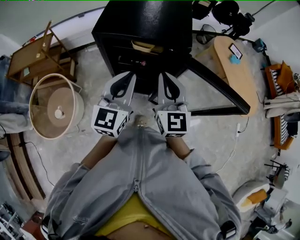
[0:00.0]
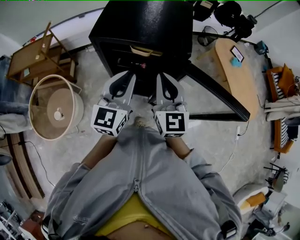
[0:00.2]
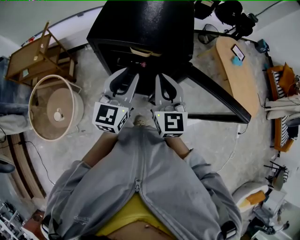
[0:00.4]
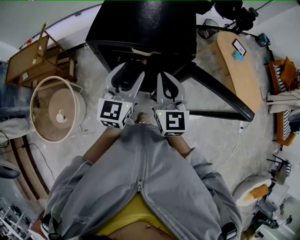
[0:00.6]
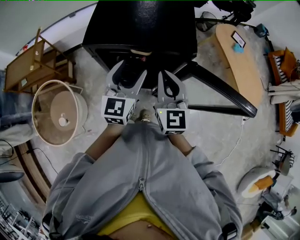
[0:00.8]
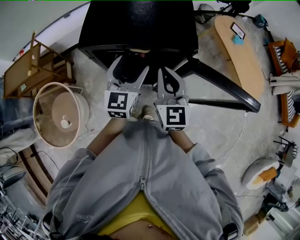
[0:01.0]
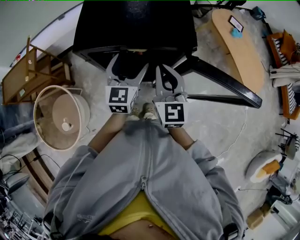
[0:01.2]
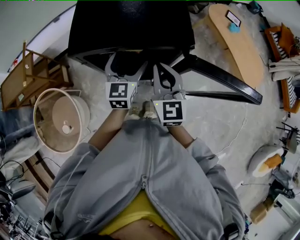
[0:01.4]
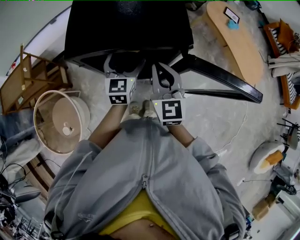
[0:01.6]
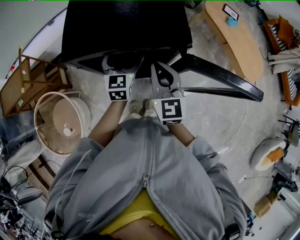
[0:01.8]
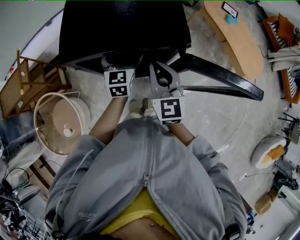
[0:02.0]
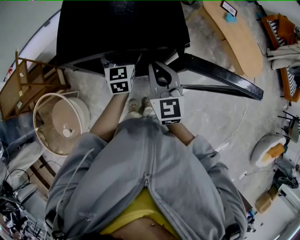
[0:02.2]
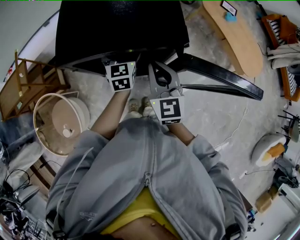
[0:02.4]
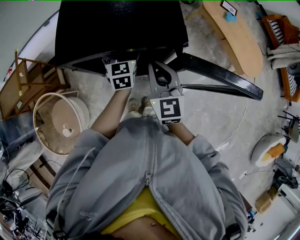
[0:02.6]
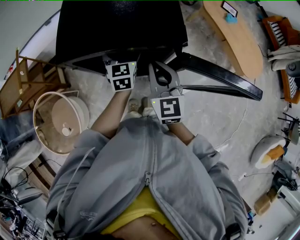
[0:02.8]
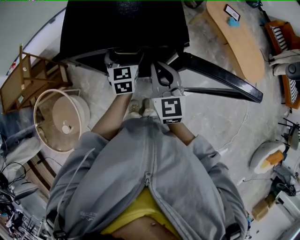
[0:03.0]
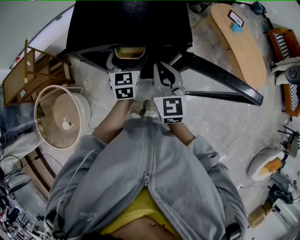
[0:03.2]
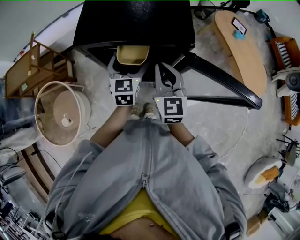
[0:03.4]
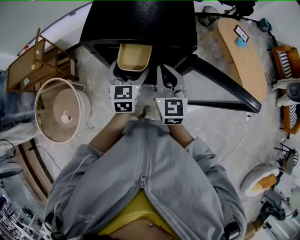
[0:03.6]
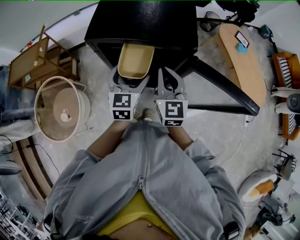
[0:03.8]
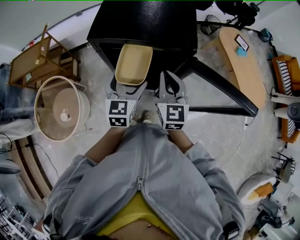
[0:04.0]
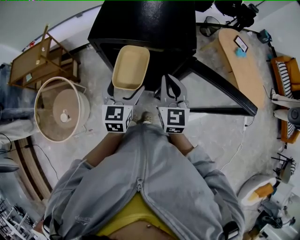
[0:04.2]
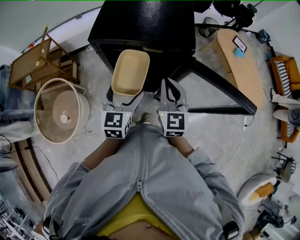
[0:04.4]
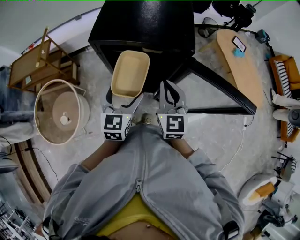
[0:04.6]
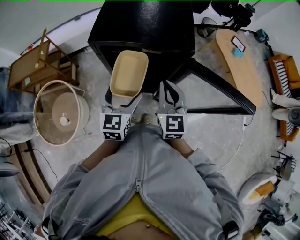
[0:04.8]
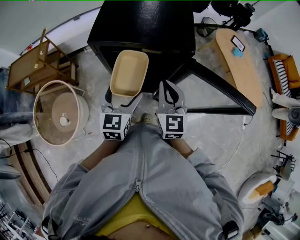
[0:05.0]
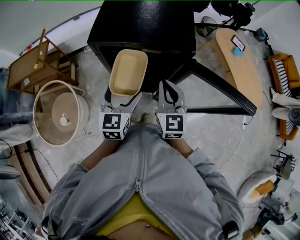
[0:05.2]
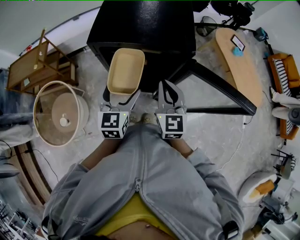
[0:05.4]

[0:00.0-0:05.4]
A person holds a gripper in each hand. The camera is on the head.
0.0 to 1.4 s: The right gripper shifts some 10 cm forward and downward, while the left gripper moves forward and downward, roughly 20 cm, and opens its fingers.
1.4 to 2.8 s: The left gripper moves forward, approximately 5 cm.
2.8 to 4.0 s: The right gripper moves about 5 cm, while the left gripper travels backward and upward by approximately 20 cm.
4.0 to 5.4 s: The grippers move only a little.

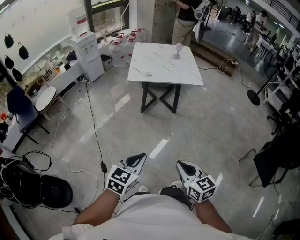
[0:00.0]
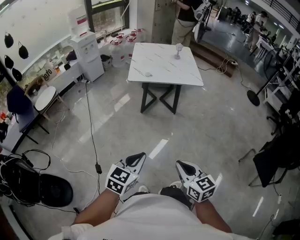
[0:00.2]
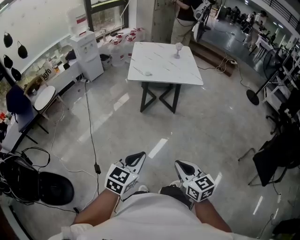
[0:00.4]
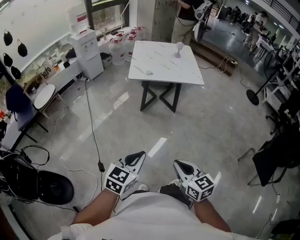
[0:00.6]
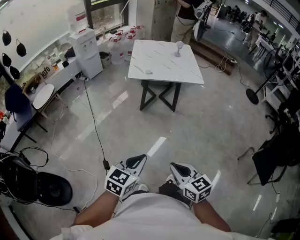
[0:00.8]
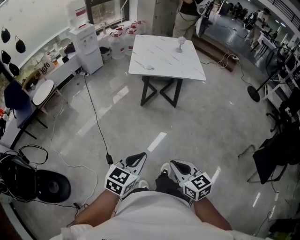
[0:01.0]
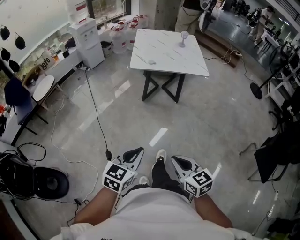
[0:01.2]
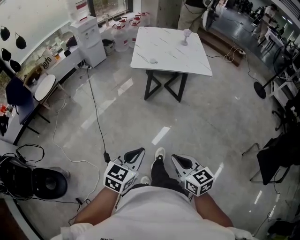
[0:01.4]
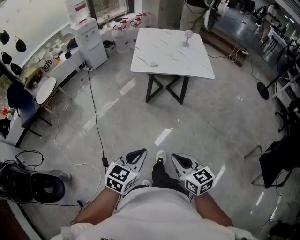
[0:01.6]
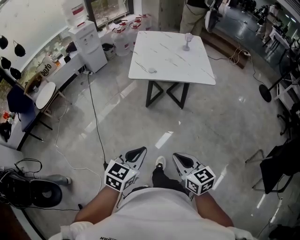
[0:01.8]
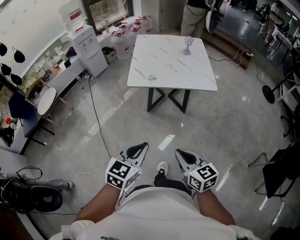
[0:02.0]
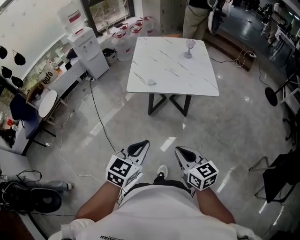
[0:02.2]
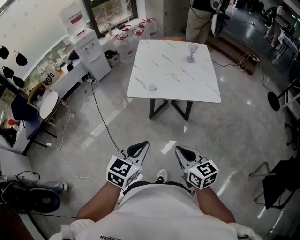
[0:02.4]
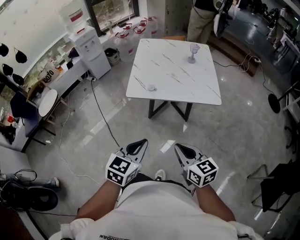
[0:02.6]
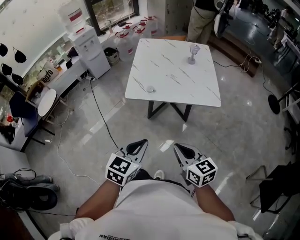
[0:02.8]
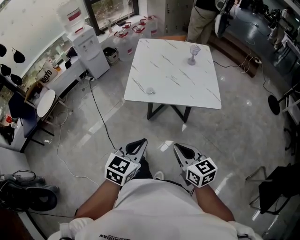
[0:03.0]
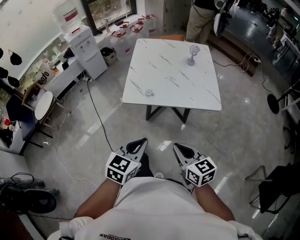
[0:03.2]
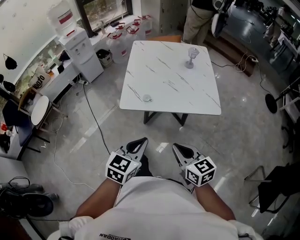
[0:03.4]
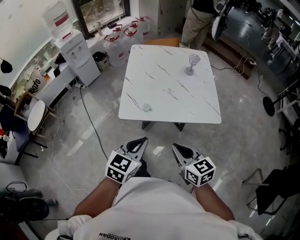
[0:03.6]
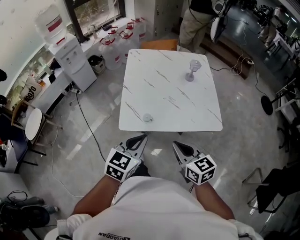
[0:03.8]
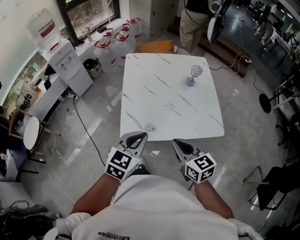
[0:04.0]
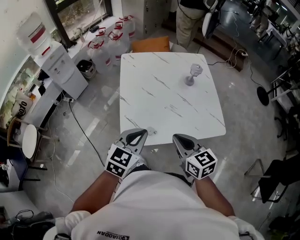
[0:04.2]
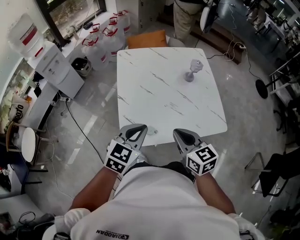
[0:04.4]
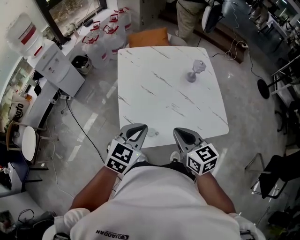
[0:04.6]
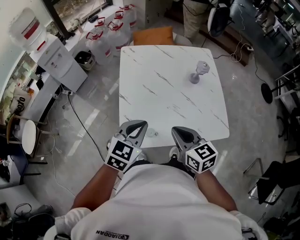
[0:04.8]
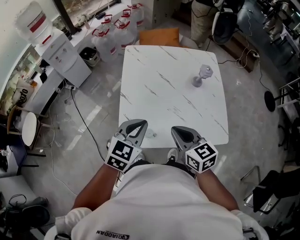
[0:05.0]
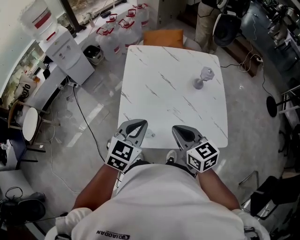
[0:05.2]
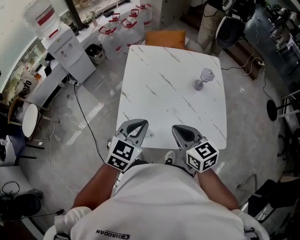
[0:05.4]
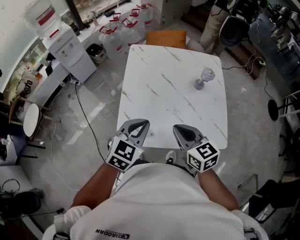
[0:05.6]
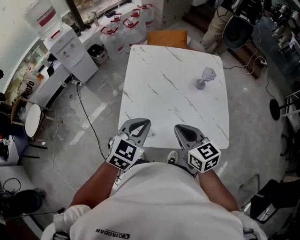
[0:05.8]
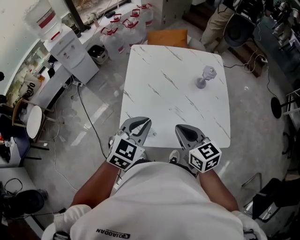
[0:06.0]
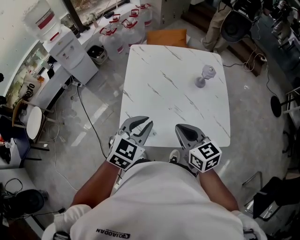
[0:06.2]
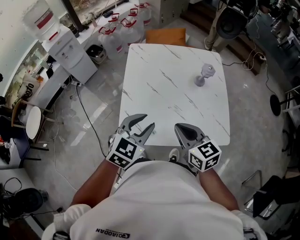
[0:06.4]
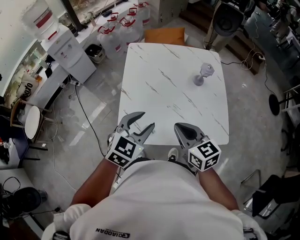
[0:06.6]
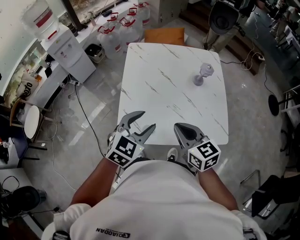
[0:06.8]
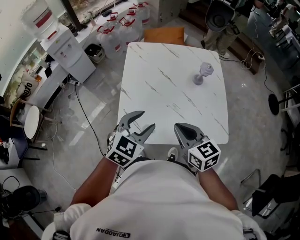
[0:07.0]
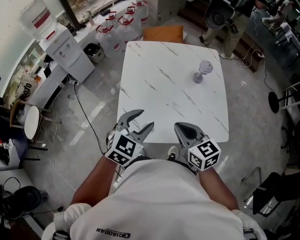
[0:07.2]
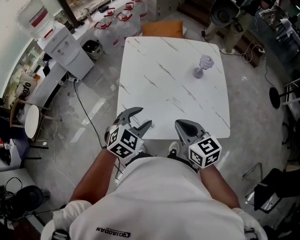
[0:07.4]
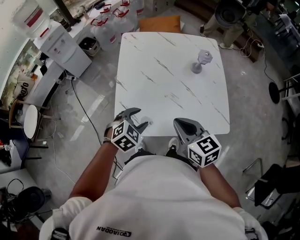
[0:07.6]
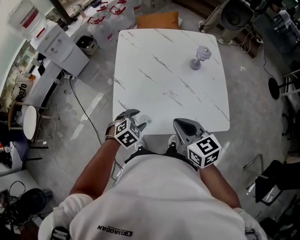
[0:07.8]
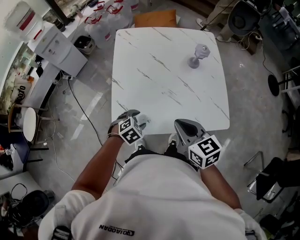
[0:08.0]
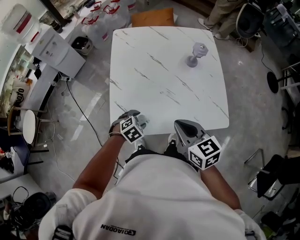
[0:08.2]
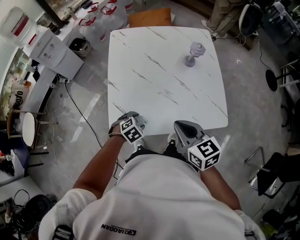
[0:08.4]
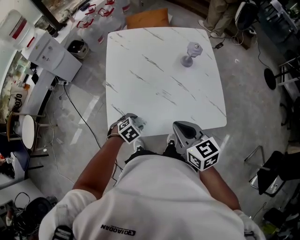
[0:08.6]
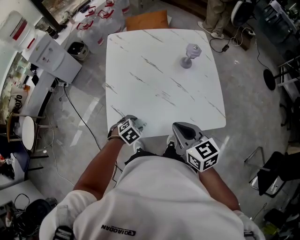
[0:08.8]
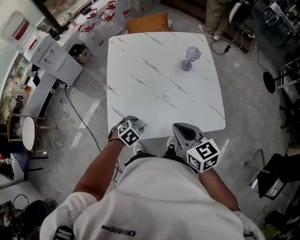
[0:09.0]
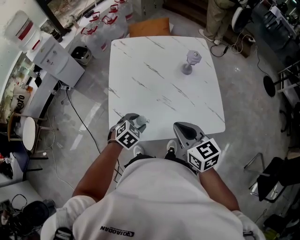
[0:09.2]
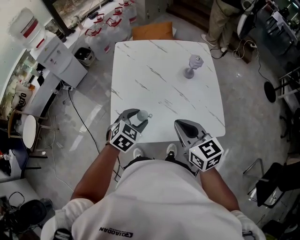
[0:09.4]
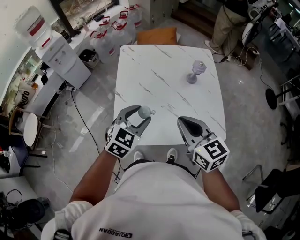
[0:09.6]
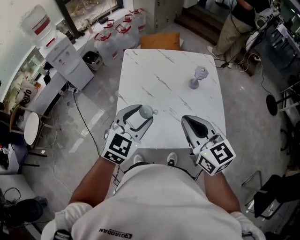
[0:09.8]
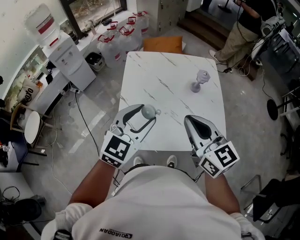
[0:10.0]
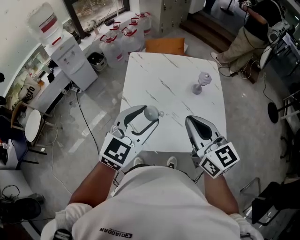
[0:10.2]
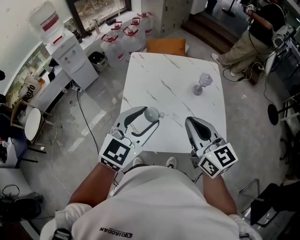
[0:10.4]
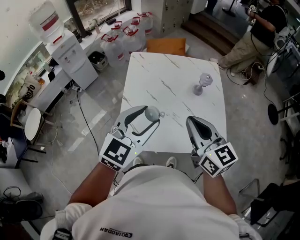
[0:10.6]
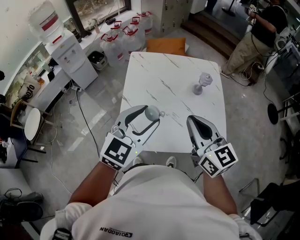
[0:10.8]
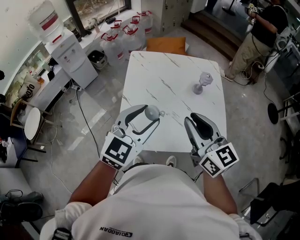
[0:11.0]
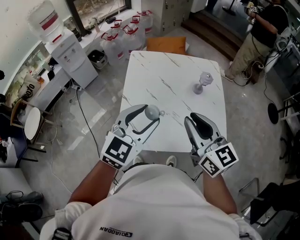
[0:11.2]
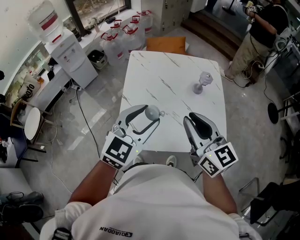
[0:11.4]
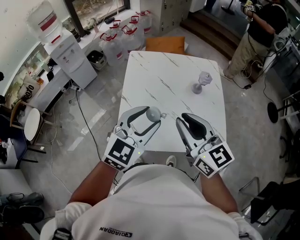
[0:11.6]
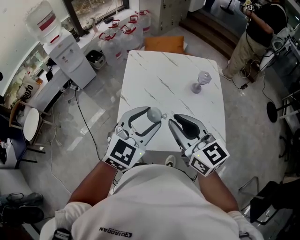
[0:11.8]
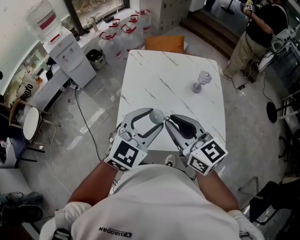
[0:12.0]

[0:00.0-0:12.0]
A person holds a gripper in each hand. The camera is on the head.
0.0 to 1.6 s: Both grippers move forward, approximately 5 cm.
1.6 to 3.0 s: Both grippers travel together forward, roughly 30 cm.
3.0 to 4.4 s: Both grippers move forward, approximately 35 cm.
4.4 to 6.0 s: The right gripper is displaced forward by approximately 5 cm.
6.0 to 7.6 s: The left gripper moves downward, approximately 15 cm, changes its angle by some 30 degrees, and opens its fingers.
7.6 to 9.0 s: The left gripper travels downward by some 10 cm.
9.0 to 10.4 s: The left gripper is displaced upward by some 35 cm, and points its fingers roughly 50 degrees further upward; the right gripper travels upward by about 15 cm, and turns by roughly 20 degrees.
10.4 to 12.0 s: The right gripper is displaced to the left by approximately 5 cm.

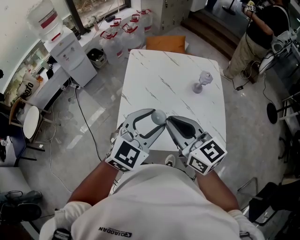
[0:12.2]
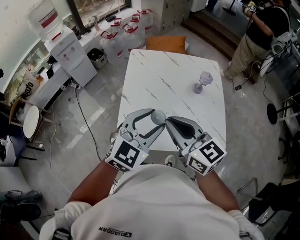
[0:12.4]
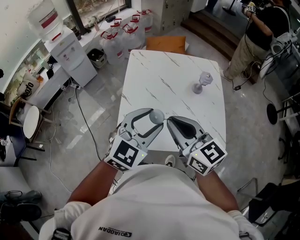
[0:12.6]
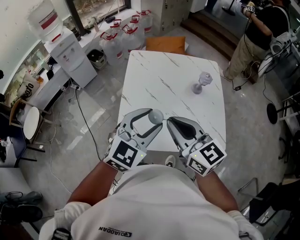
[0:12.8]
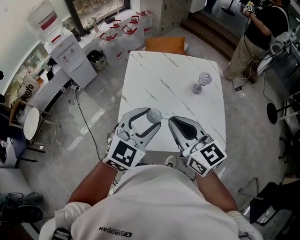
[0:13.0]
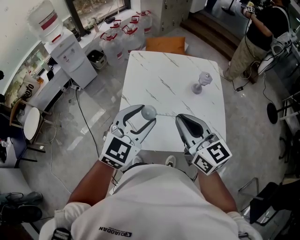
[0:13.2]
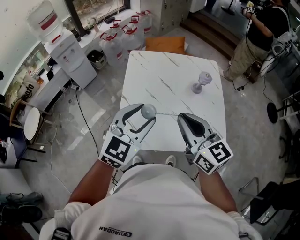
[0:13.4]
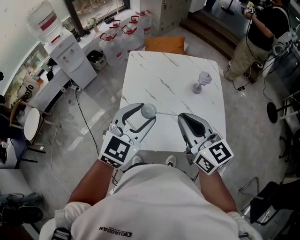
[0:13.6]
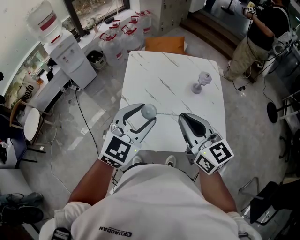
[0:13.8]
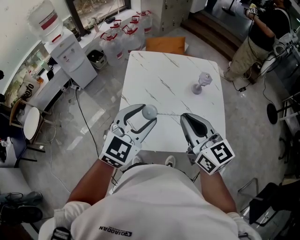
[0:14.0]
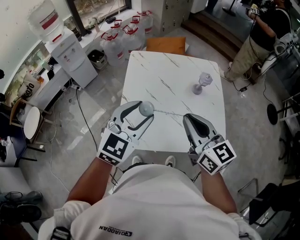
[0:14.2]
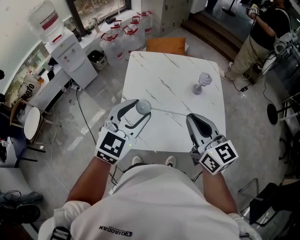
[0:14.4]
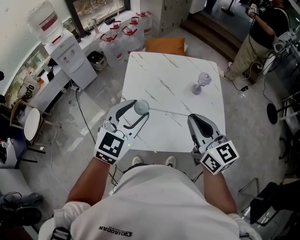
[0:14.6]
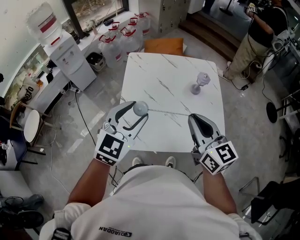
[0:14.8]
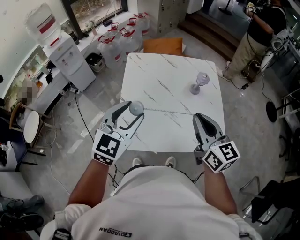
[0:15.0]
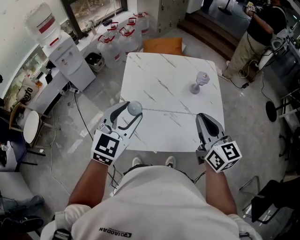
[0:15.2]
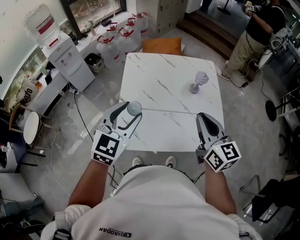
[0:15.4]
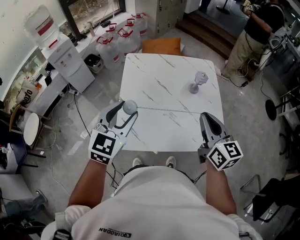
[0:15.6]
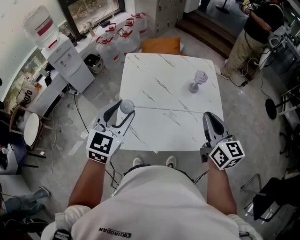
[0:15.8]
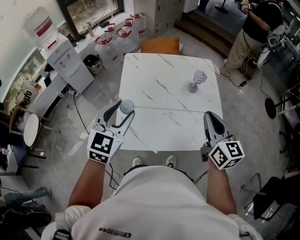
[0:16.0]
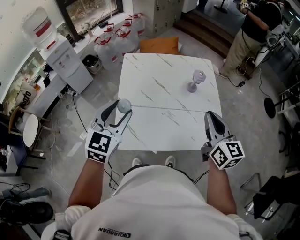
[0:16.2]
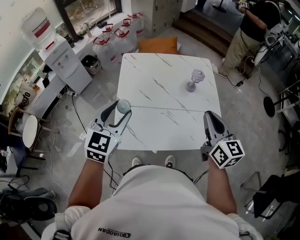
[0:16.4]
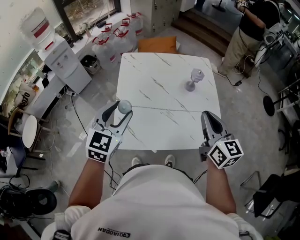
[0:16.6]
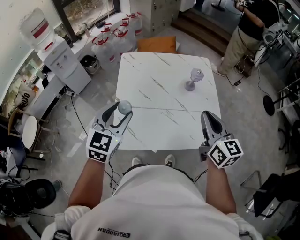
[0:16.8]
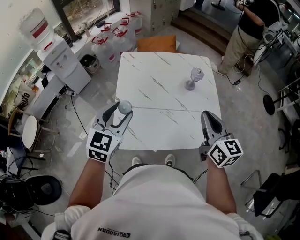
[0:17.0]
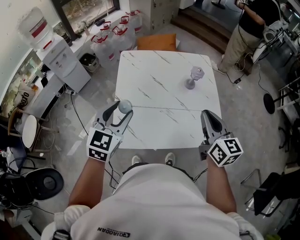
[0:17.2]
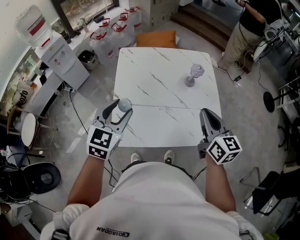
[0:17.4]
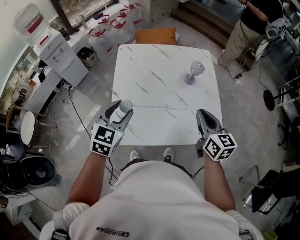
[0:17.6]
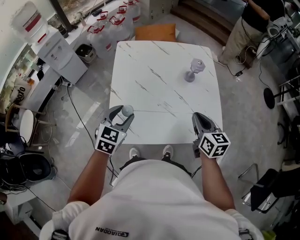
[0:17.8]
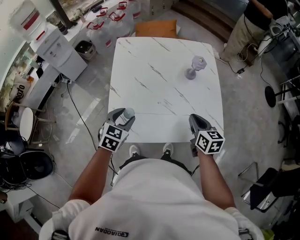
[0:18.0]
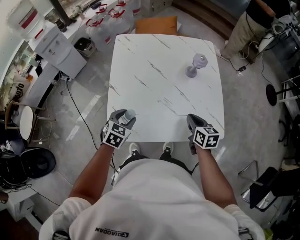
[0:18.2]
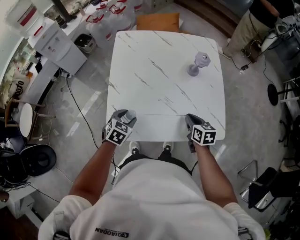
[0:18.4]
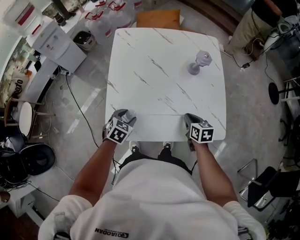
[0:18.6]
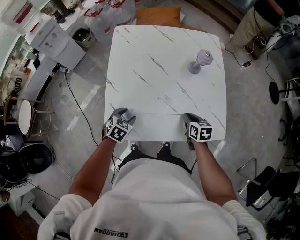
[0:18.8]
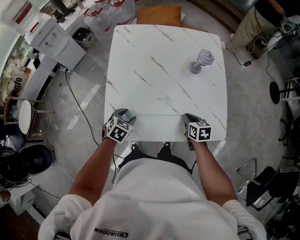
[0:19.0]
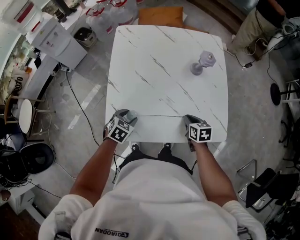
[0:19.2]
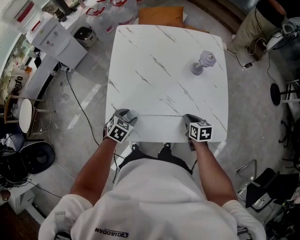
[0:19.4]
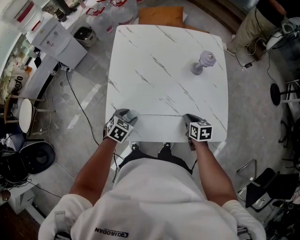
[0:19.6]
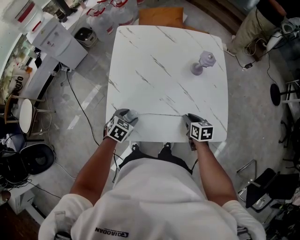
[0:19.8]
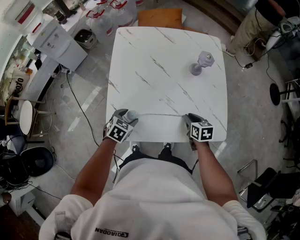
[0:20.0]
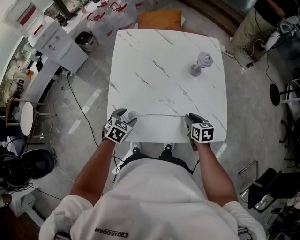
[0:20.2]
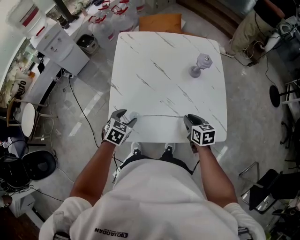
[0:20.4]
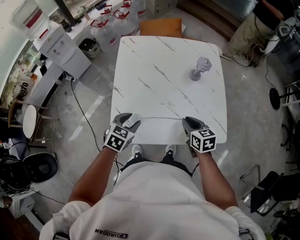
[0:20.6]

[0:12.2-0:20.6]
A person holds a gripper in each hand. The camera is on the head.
12.2 to 13.6 s: The grippers stay close to where they were, moving slightly.
13.6 to 15.0 s: The right gripper travels to the right by roughly 5 cm.
15.0 to 16.4 s: The right gripper is displaced to the right by some 5 cm.
16.4 to 17.8 s: Both grippers travel together downward, about 15 cm.
17.8 to 19.2 s: The grippers both shift downward by approximately 20 cm. The right gripper rotates some 30 degrees. Meanwhile the left gripper turns by about 30 degrees.
19.2 to 20.6 s: Both grippers move upward, roughly 10 cm.
